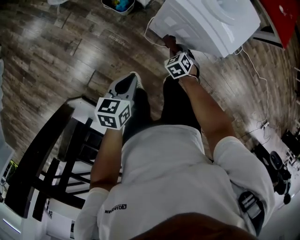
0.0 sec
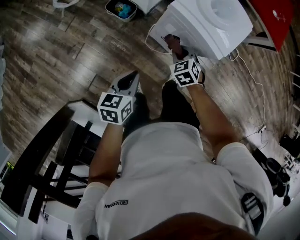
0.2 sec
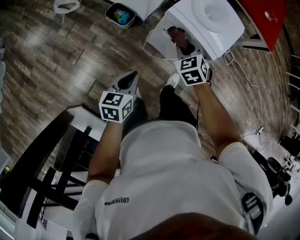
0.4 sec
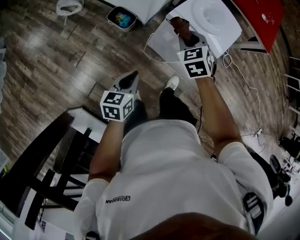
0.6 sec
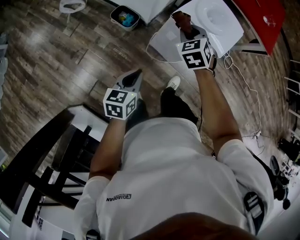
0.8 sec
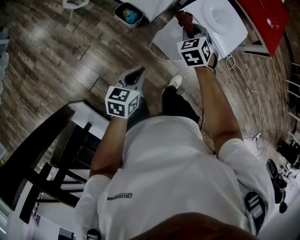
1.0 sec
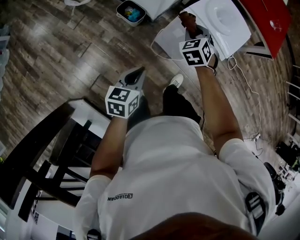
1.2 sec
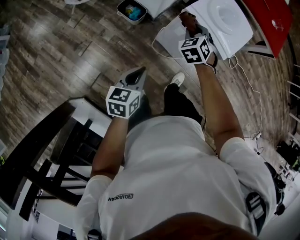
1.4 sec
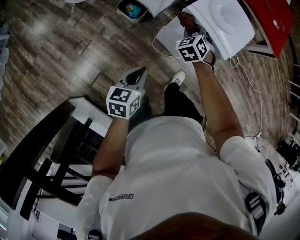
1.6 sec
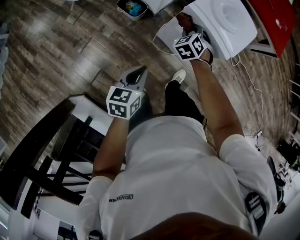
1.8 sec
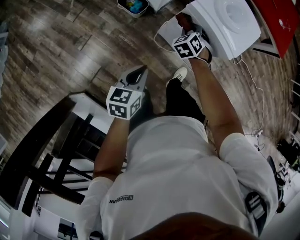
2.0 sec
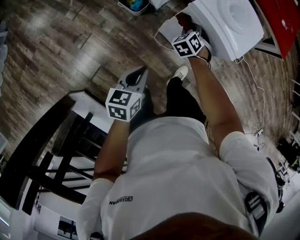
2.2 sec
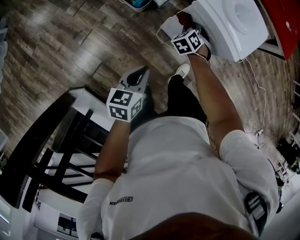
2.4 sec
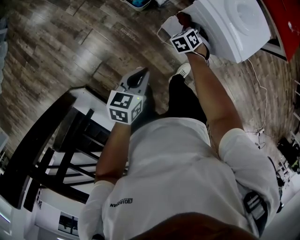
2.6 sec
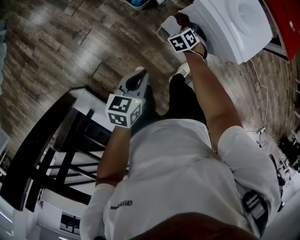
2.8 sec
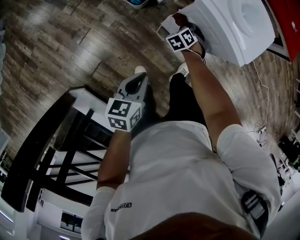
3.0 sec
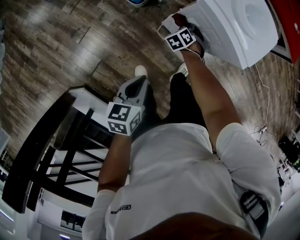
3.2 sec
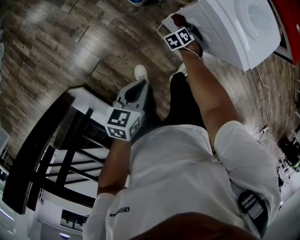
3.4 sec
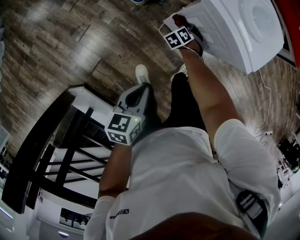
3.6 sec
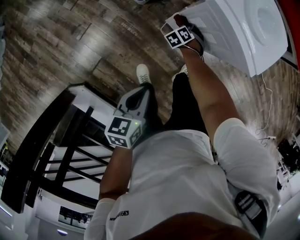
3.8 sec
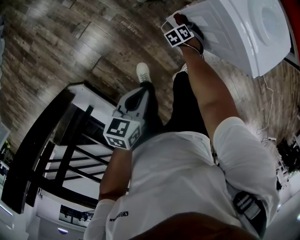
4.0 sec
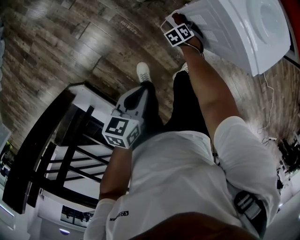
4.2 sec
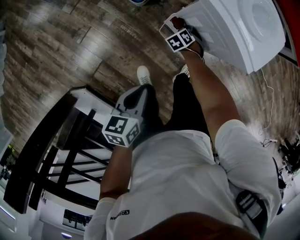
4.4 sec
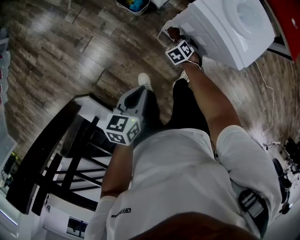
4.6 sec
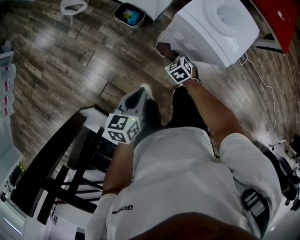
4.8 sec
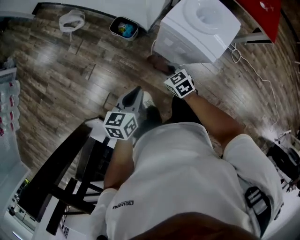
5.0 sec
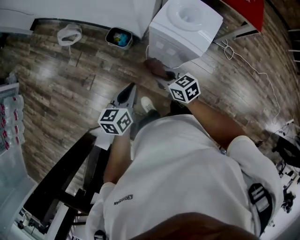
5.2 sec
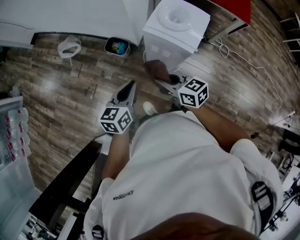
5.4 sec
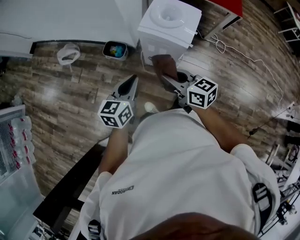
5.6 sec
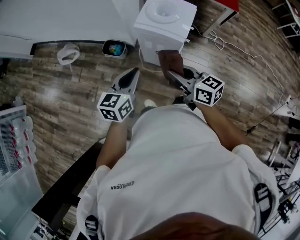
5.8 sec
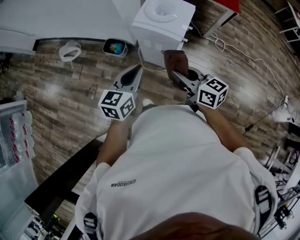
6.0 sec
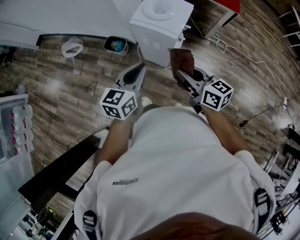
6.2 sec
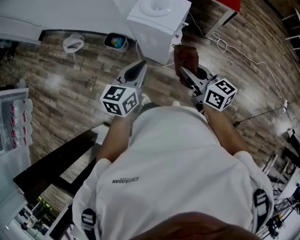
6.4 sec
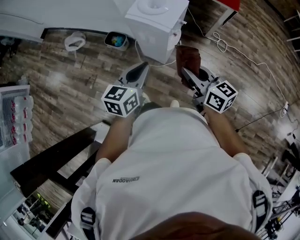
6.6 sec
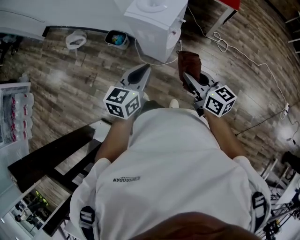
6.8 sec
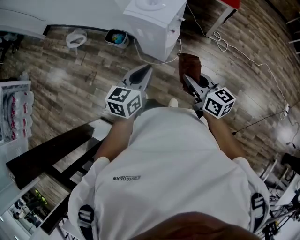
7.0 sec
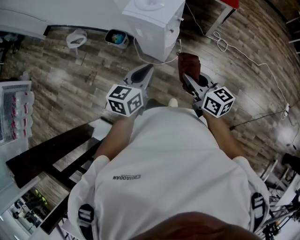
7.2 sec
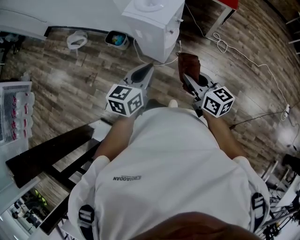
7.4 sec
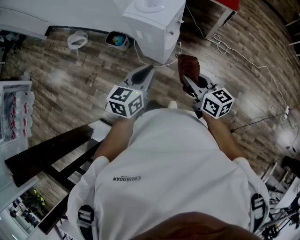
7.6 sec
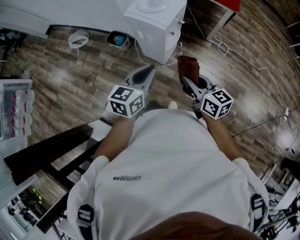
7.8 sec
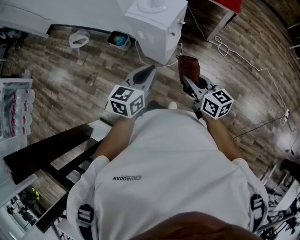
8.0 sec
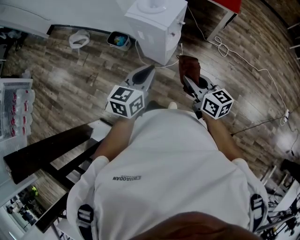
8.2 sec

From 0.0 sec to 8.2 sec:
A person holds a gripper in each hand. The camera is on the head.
From 0.0 sec to 1.6 sec: The right gripper travels upward and forward by some 20 cm, and turns by some 20 degrees, while the left gripper is displaced upward by roughly 5 cm.
From 1.6 sec to 3.2 sec: The right gripper travels downward by about 20 cm. Meanwhile the left gripper shifts by some 5 cm.
From 3.2 sec to 5.0 sec: The right gripper travels upward by about 15 cm, and turns by approximately 50 degrees, while the left gripper heads upward, covering some 10 cm.
From 5.0 sec to 6.6 sec: The left gripper travels to the right, upward and backward by some 25 cm, and turns by approximately 20 degrees, while the right gripper goes about 40 cm upward, to the right and backward, and tips its fingers upward by approximately 40 degrees.
From 6.6 sec to 8.2 sec: The left gripper heads to the right, covering about 5 cm. The right gripper ends up some 10 cm from where it was.

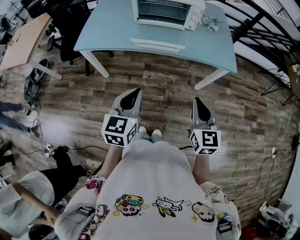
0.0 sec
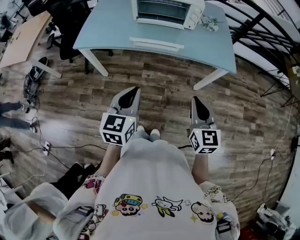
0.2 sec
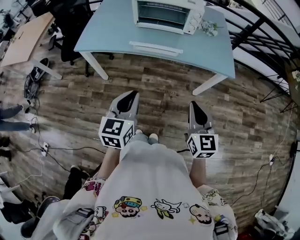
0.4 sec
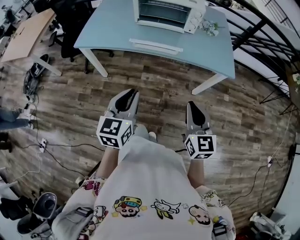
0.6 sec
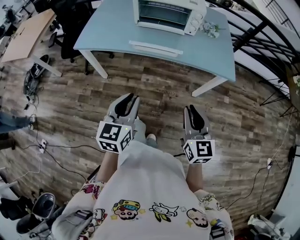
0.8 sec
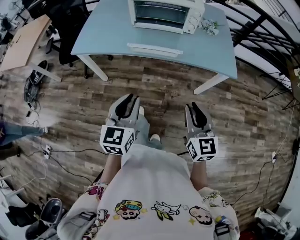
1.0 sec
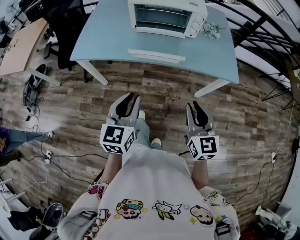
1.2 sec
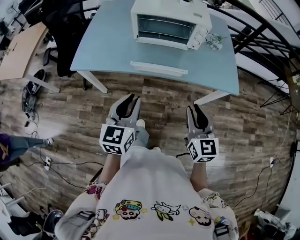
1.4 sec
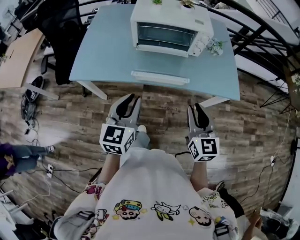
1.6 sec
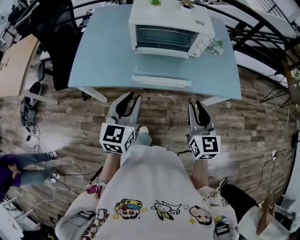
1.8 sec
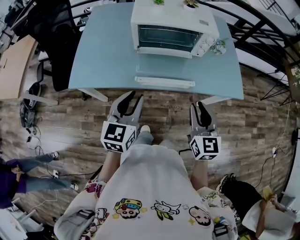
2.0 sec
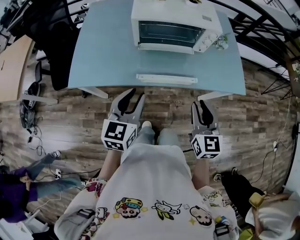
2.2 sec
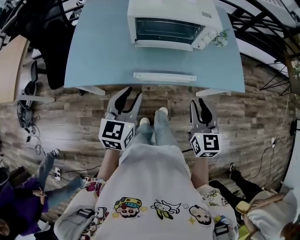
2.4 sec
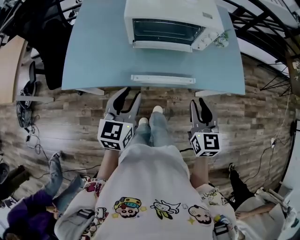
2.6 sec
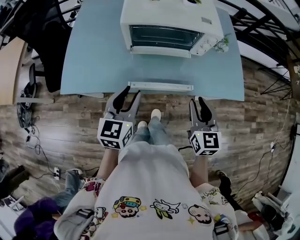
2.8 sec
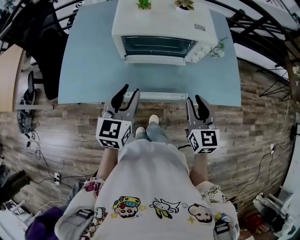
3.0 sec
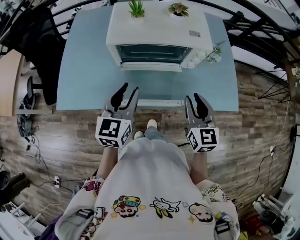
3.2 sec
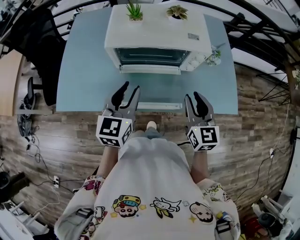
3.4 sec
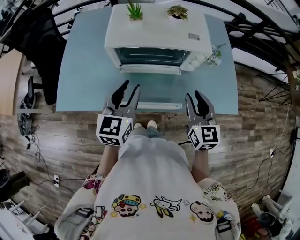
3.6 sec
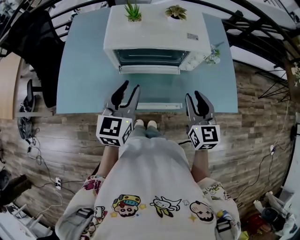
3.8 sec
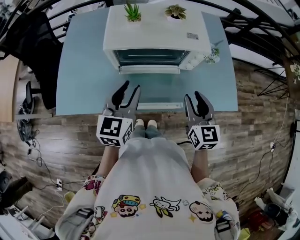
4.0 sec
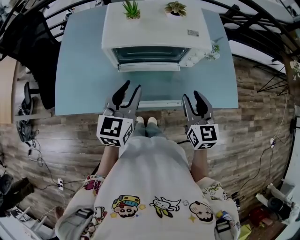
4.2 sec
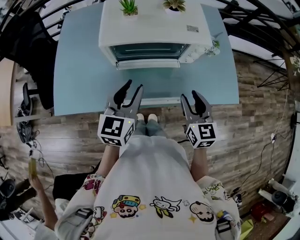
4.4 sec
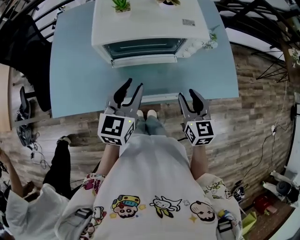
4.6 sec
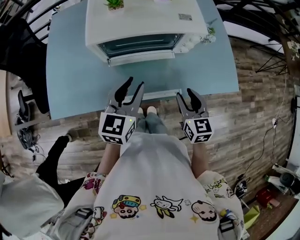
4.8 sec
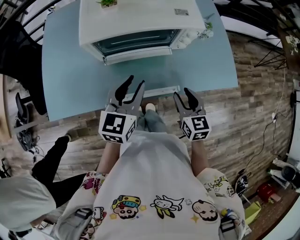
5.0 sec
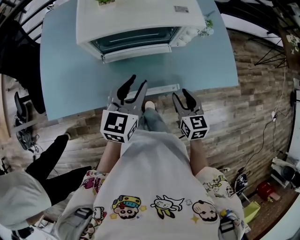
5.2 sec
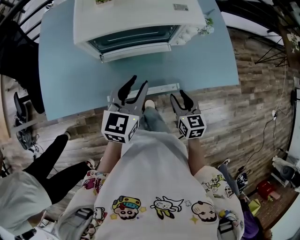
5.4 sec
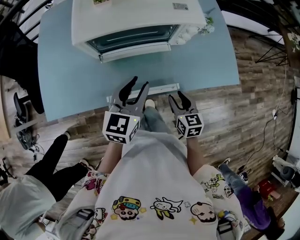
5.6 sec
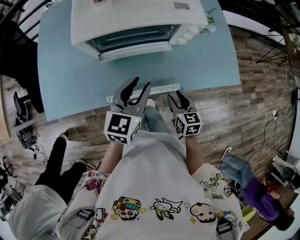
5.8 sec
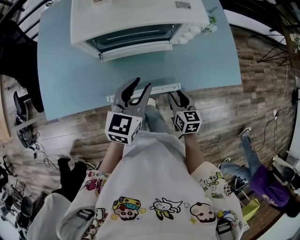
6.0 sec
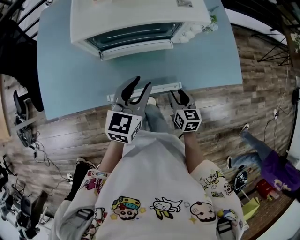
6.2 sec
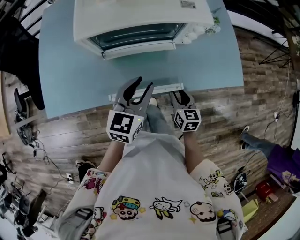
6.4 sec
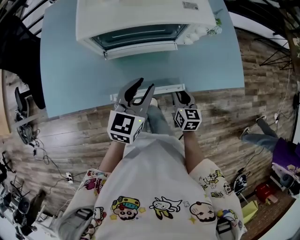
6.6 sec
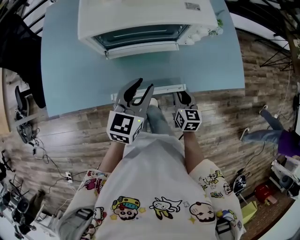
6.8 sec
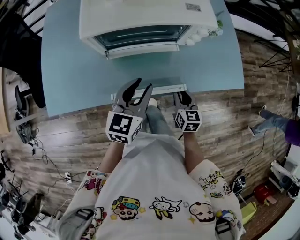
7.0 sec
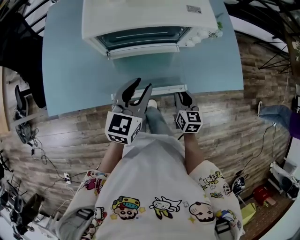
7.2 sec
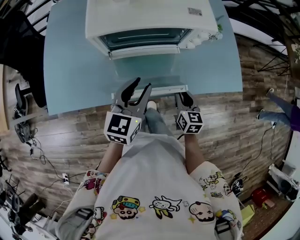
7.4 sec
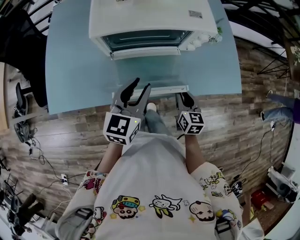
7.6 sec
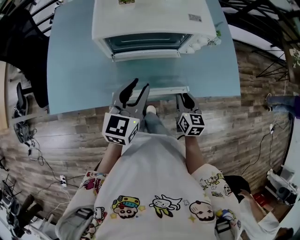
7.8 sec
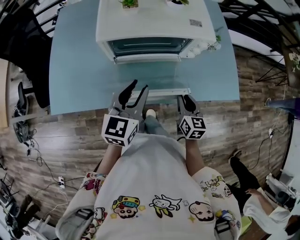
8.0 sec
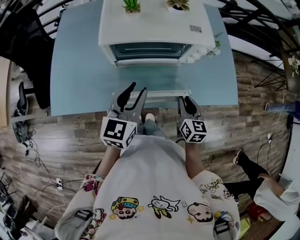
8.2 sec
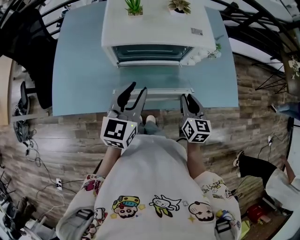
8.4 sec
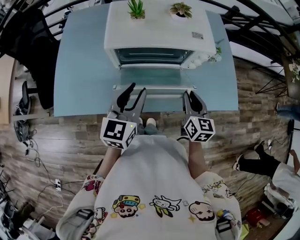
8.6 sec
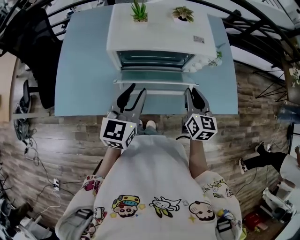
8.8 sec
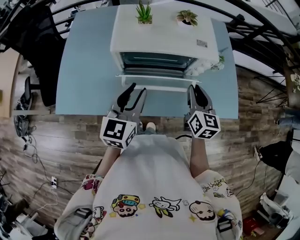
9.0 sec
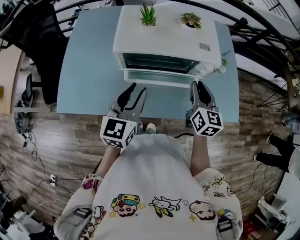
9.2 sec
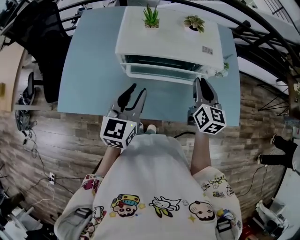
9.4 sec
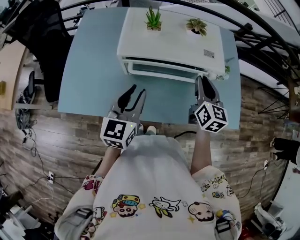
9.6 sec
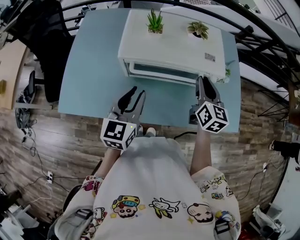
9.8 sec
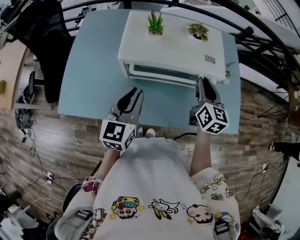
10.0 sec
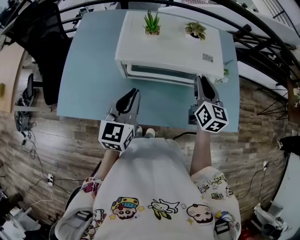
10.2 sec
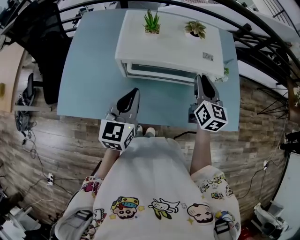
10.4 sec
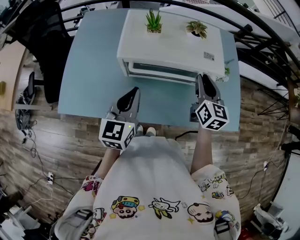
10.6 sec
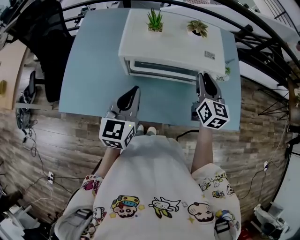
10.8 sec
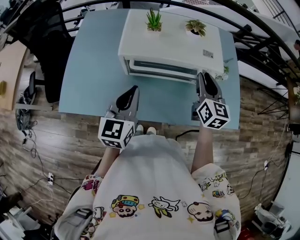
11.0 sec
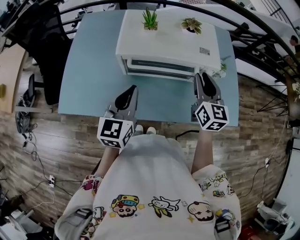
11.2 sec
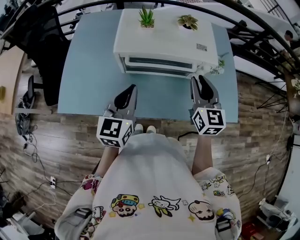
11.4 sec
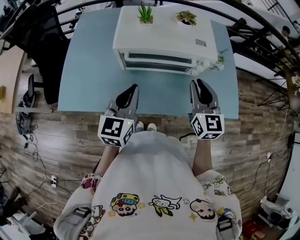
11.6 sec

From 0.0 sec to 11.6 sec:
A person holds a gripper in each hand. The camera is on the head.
From 0.0 sec to 1.4 sec: The two grippers go about 10 cm forward.
From 1.4 sec to 2.8 sec: The grippers both shift forward by some 15 cm.
From 2.8 sec to 4.4 sec: Both grippers move forward, roughly 10 cm.
From 4.4 sec to 5.8 sec: The left gripper heads downward and to the right, covering about 10 cm. Meanwhile the right gripper travels downward by approximately 15 cm, and swivels about 20 degrees.
From 5.8 sec to 7.2 sec: The grippers make only small movements.
From 7.2 sec to 8.8 sec: The left gripper travels upward and to the left by about 10 cm, while the right gripper moves upward and forward, some 20 cm.
From 8.8 sec to 10.2 sec: The left gripper closes; the right gripper goes roughly 10 cm forward and upward.
From 10.2 sec to 11.6 sec: The right gripper heads backward, covering some 10 cm.

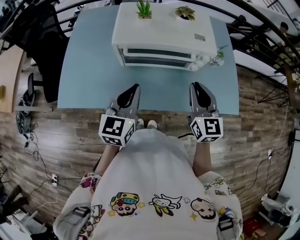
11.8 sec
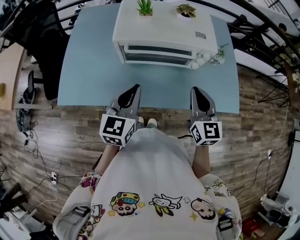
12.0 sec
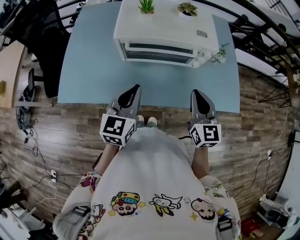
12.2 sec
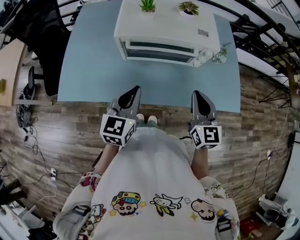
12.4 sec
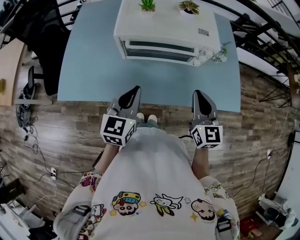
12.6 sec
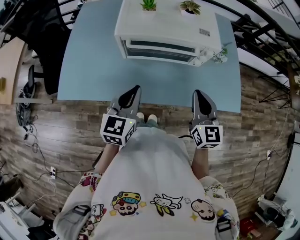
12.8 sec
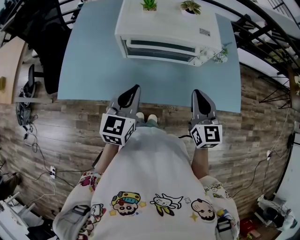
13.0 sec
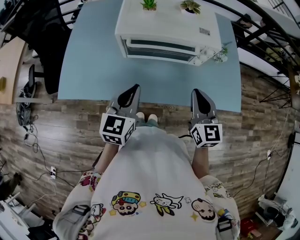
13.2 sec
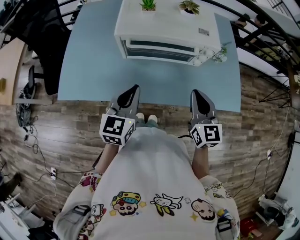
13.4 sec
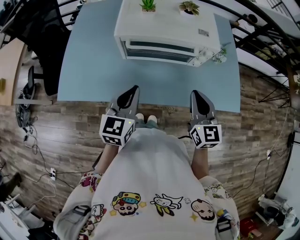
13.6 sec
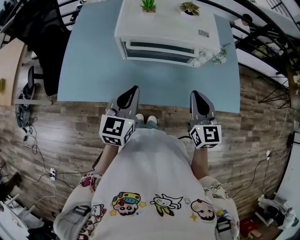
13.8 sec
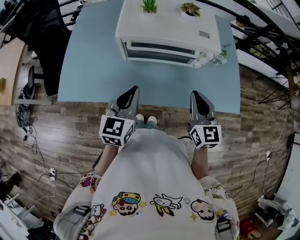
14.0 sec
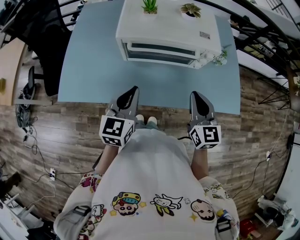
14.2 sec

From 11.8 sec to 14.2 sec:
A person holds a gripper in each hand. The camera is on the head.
From 11.8 sec to 13.0 sec: The grippers stay close to where they were, moving slightly.
From 13.0 sec to 14.2 sec: The two grippers keep their place.

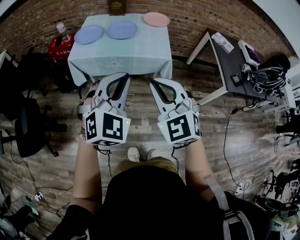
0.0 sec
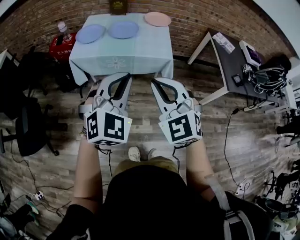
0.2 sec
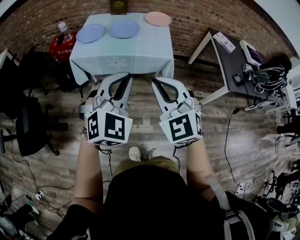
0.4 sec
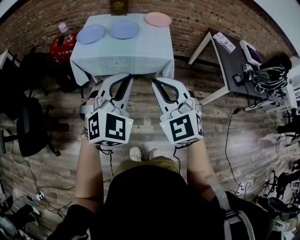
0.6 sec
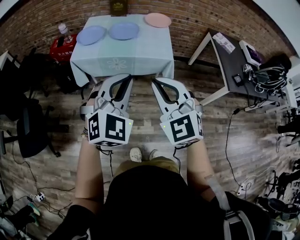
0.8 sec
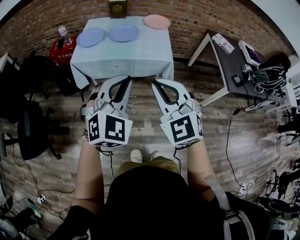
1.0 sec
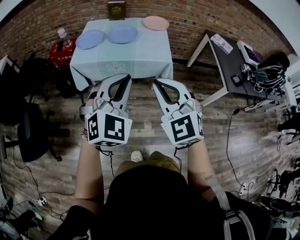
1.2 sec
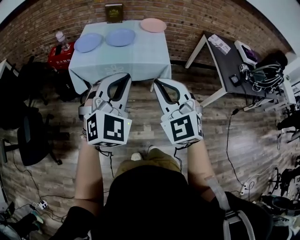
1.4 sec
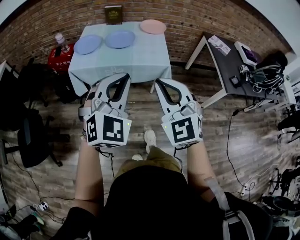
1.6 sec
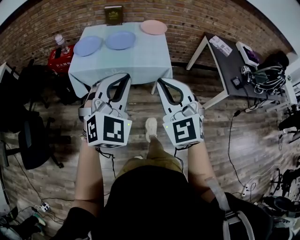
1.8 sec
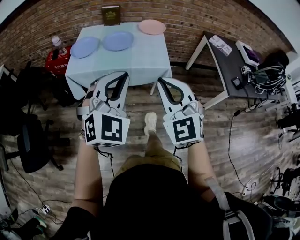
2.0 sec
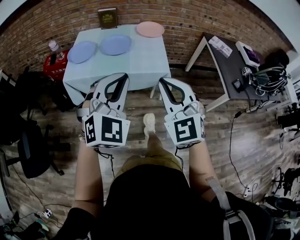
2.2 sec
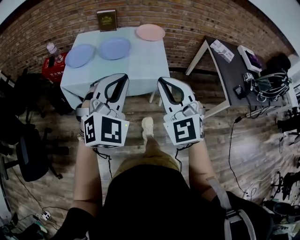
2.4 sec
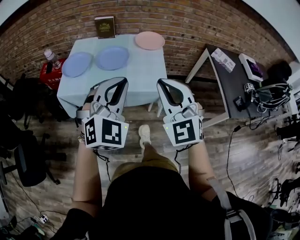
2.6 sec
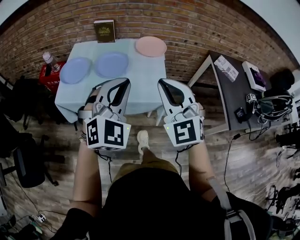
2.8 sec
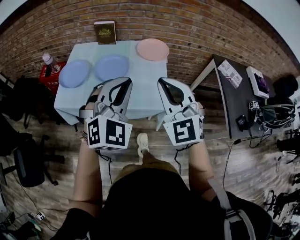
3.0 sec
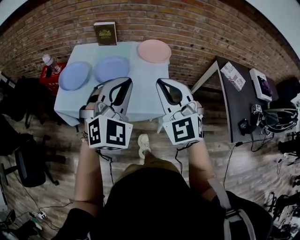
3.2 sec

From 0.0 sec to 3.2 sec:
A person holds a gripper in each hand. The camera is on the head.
From 0.0 sec to 1.6 sec: The grippers stay close to where they were, moving slightly.
From 1.6 sec to 3.2 sec: The two grippers travel together, forward, about 40 cm.
